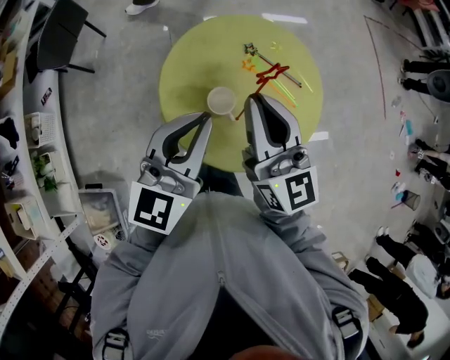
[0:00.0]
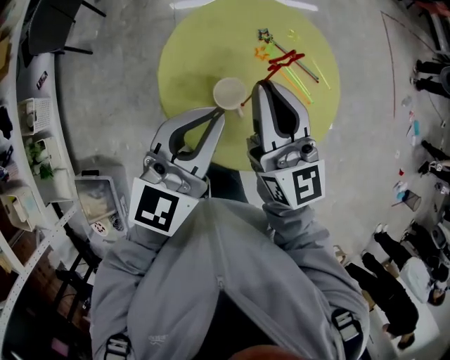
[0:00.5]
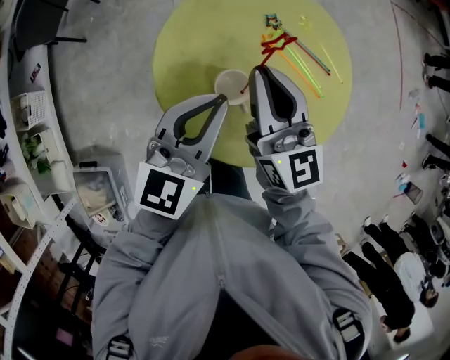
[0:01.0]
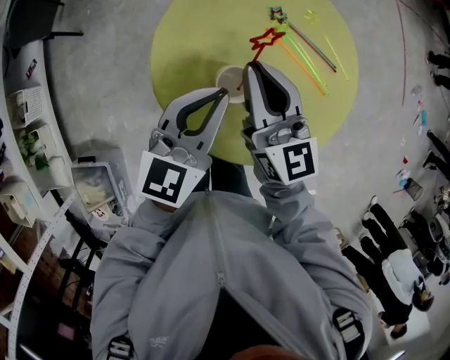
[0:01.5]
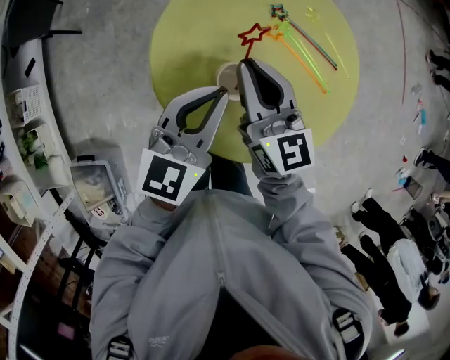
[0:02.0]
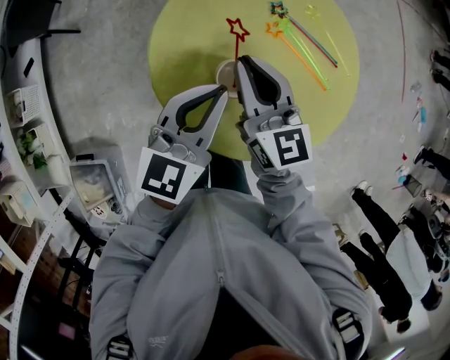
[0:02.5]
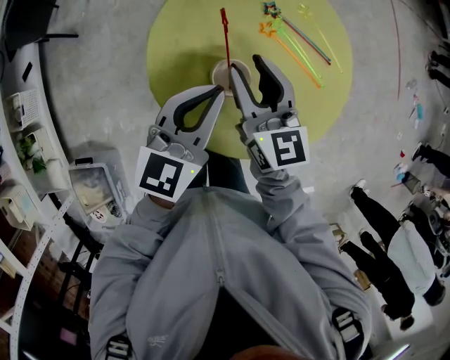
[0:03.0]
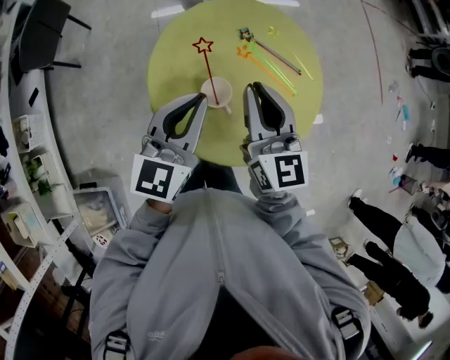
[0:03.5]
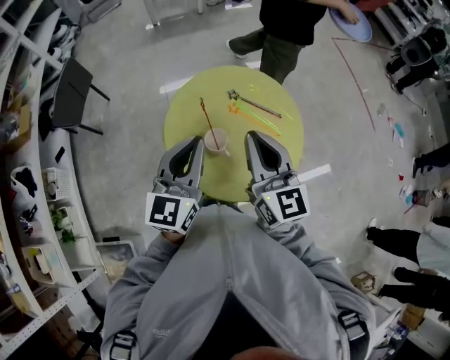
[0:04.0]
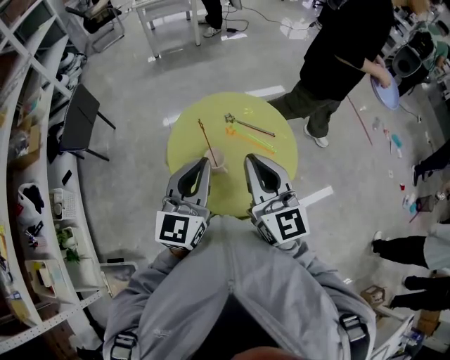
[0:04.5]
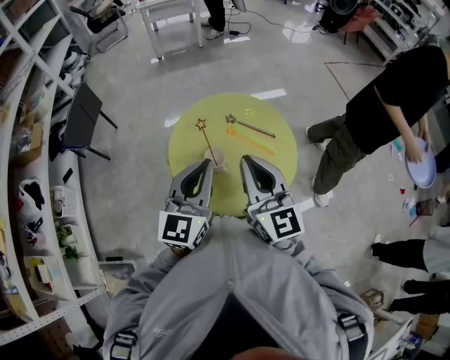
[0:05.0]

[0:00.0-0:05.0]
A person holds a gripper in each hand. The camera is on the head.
0:00.0 to 0:02.5: The two grippers go some 20 cm downward.
0:02.5 to 0:05.0: The grippers both shift upward and backward by about 35 cm. The right gripper rotates some 20 degrees, and opens, then closes again.

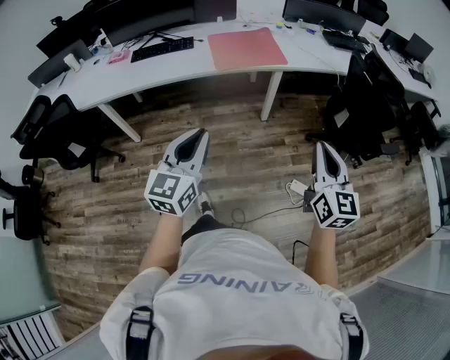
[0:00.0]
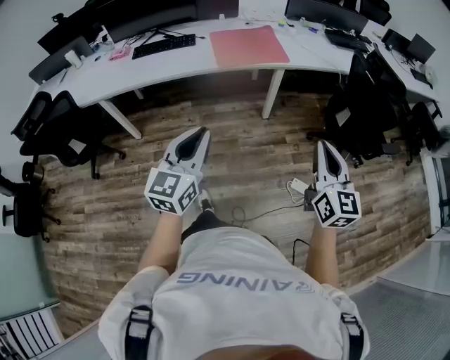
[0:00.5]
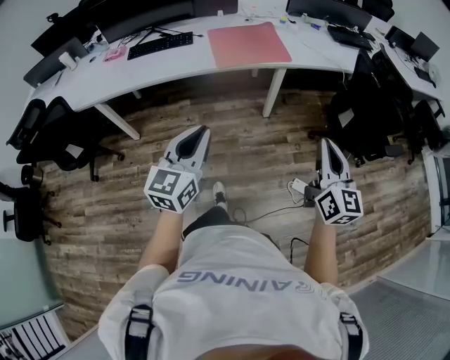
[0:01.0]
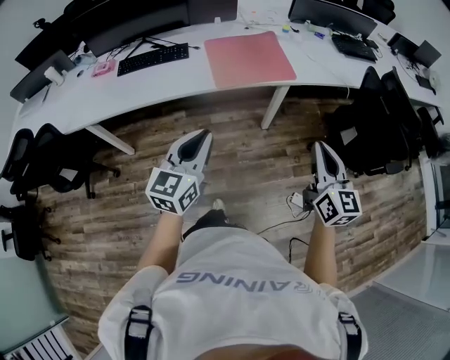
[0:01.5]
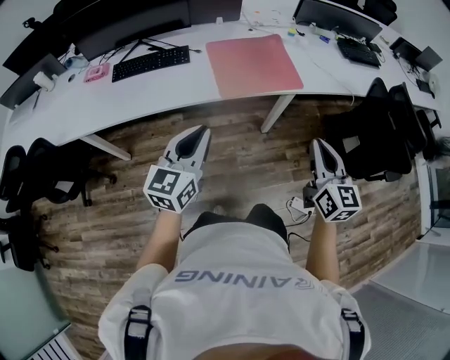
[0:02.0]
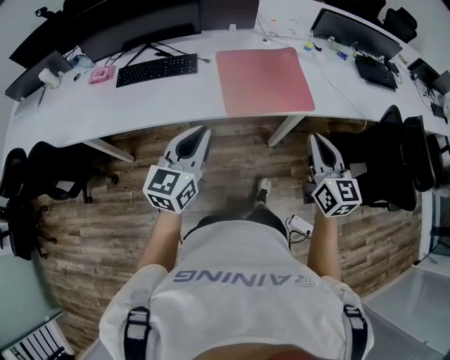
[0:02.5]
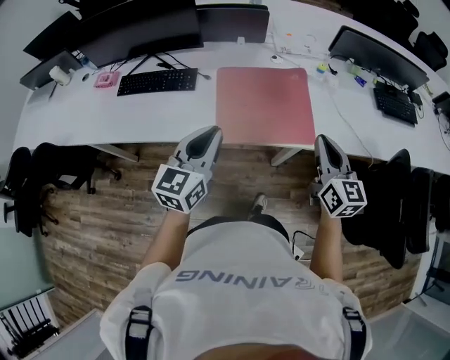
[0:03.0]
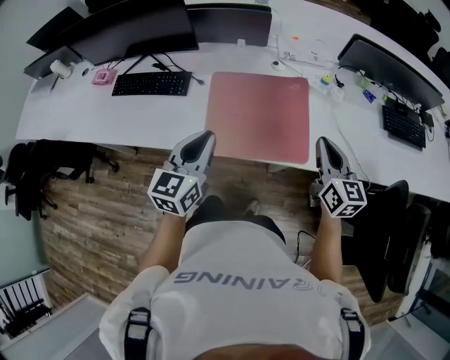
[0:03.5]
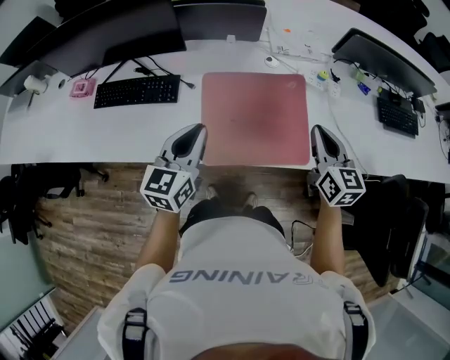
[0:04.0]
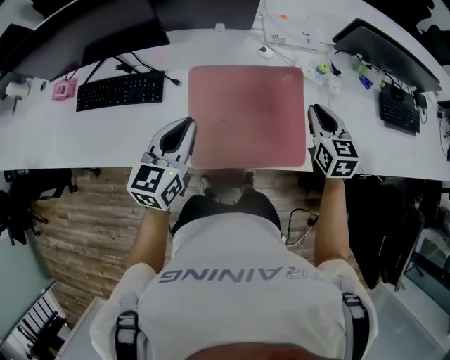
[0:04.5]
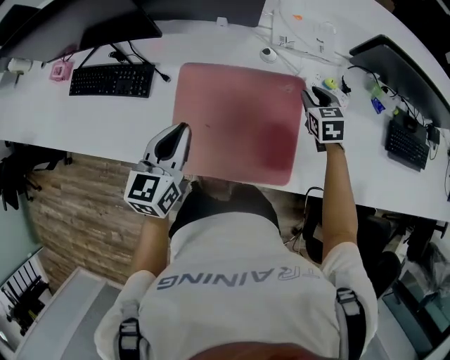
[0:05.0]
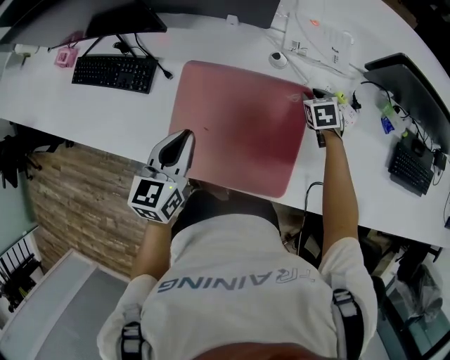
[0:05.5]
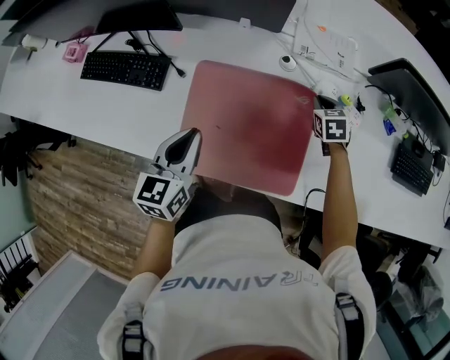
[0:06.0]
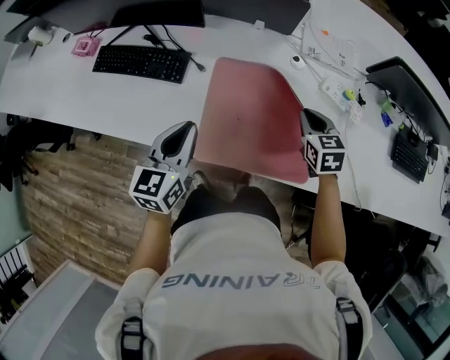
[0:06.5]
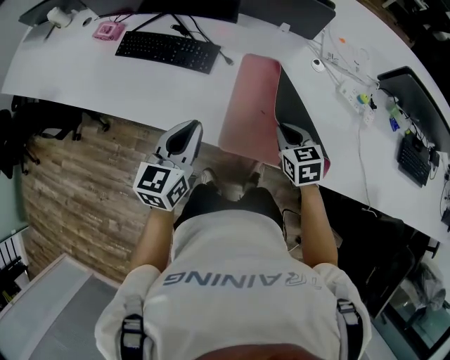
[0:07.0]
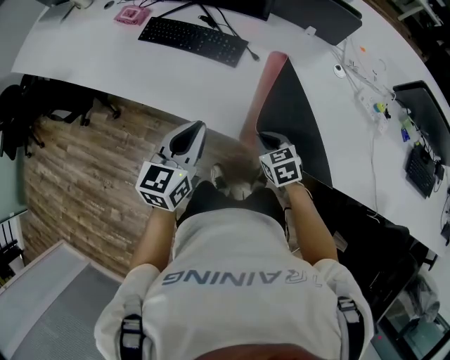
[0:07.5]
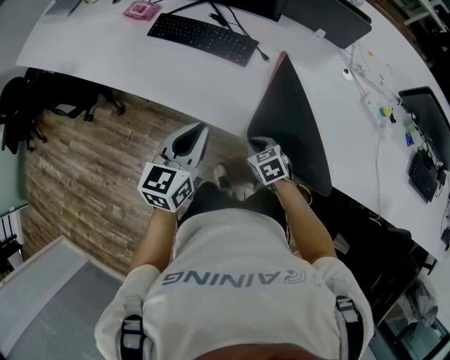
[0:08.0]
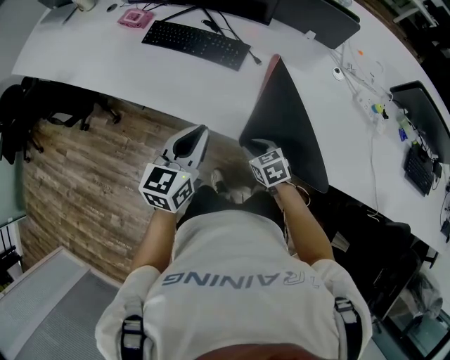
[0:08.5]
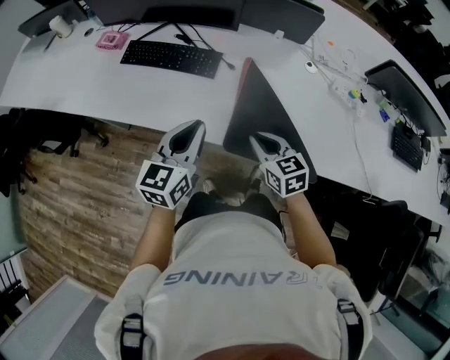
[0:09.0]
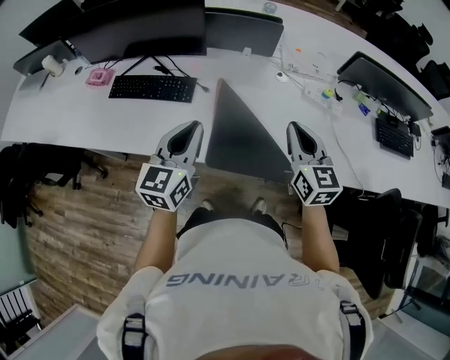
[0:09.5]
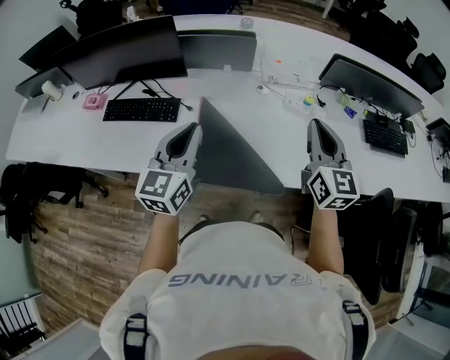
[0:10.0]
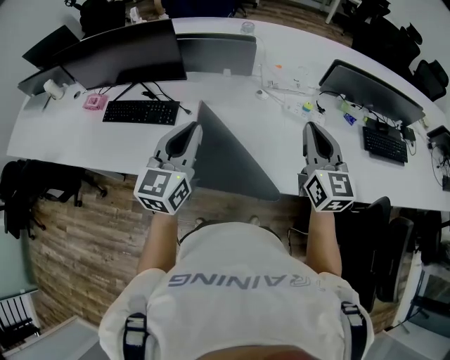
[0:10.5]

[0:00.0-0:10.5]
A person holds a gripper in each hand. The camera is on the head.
0:00.0 to 0:02.0: Both grippers travel together forward and to the left, about 30 cm.
0:02.0 to 0:04.0: The grippers both shift forward by approximately 40 cm.
0:04.0 to 0:06.5: The left gripper is displaced downward by approximately 5 cm, and reaches some 10 cm to the right, then returns; the right gripper heads forward and downward, covering about 20 cm, swivels approximately 30 degrees, and opens, then closes once more.
0:06.5 to 0:08.5: The left gripper travels to the left and backward by approximately 20 cm, while the right gripper travels to the left by some 35 cm, and changes its angle by some 30 degrees.
0:08.5 to 0:10.5: The right gripper shifts about 40 cm upward, angles its fingers upward, by roughly 50 degrees, and closes up; the left gripper changes place by some 25 cm, and rotates approximately 20 degrees.

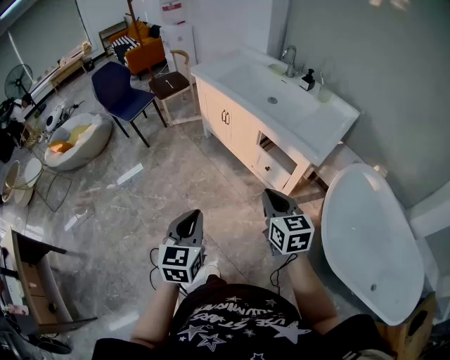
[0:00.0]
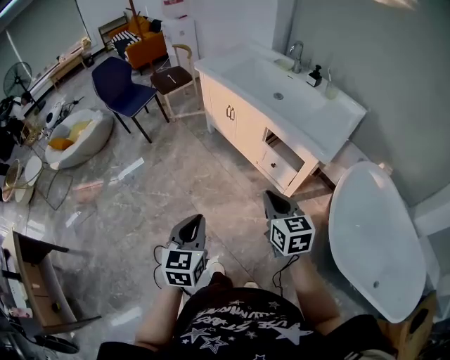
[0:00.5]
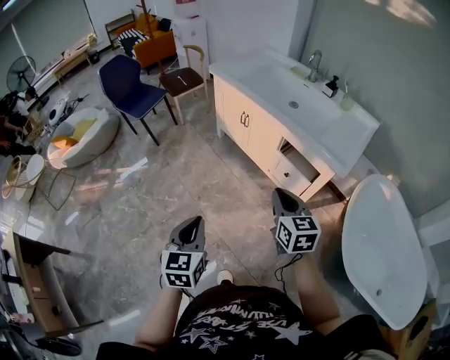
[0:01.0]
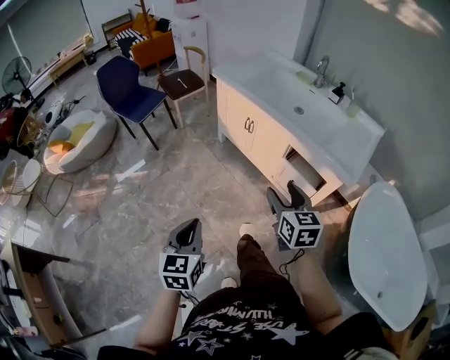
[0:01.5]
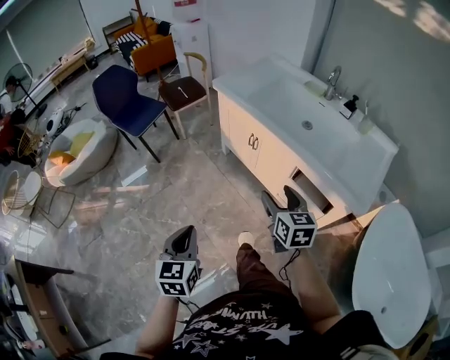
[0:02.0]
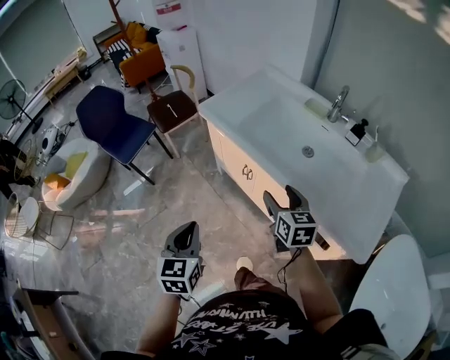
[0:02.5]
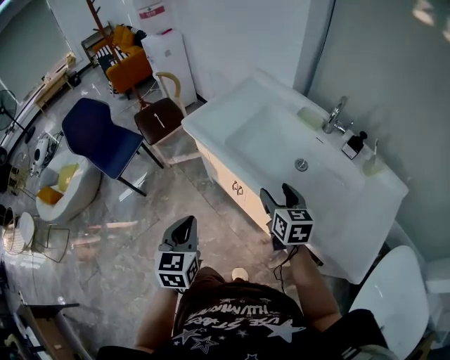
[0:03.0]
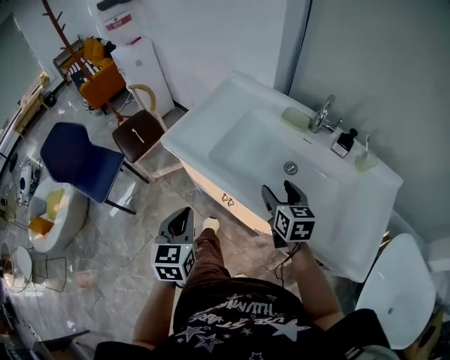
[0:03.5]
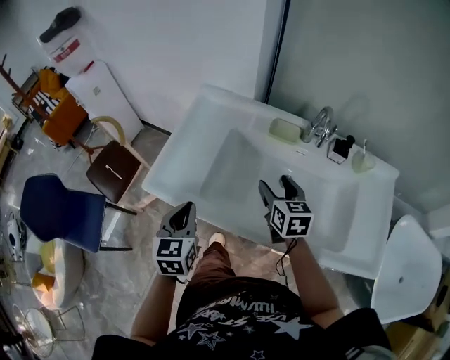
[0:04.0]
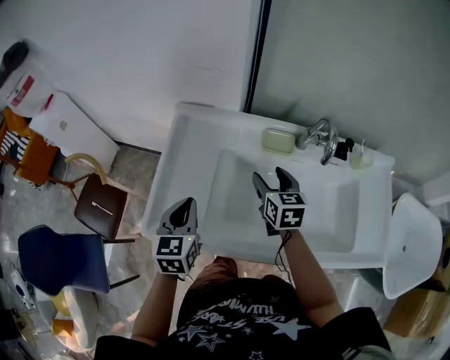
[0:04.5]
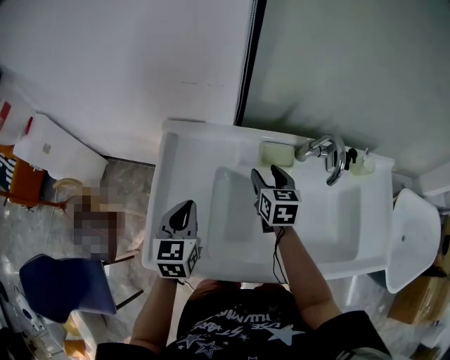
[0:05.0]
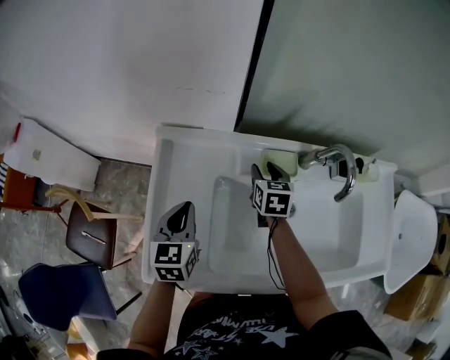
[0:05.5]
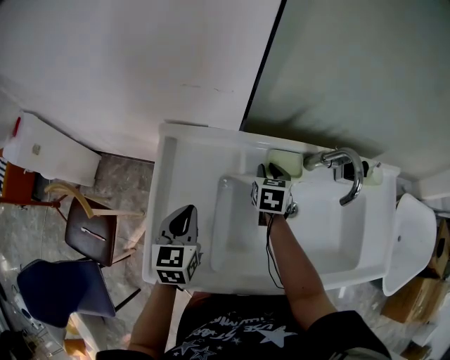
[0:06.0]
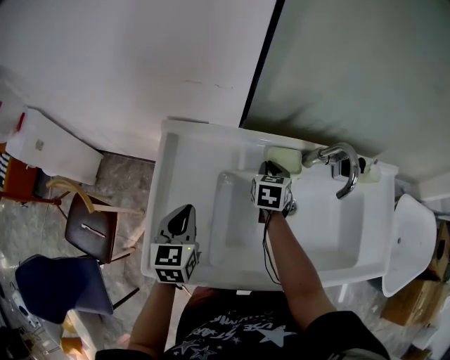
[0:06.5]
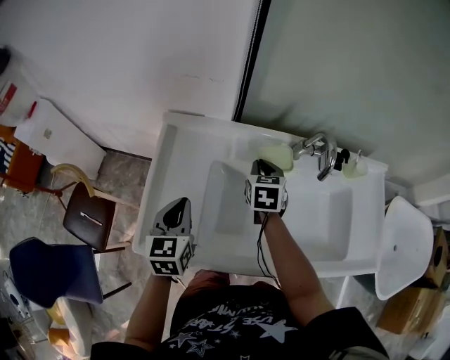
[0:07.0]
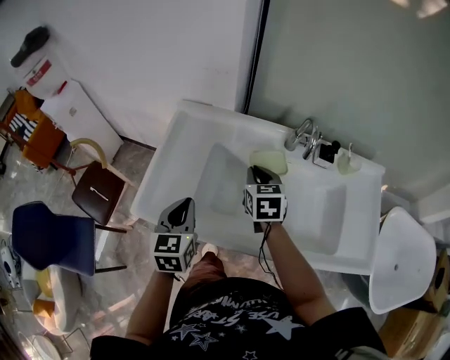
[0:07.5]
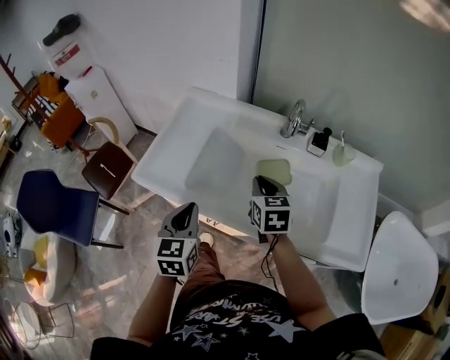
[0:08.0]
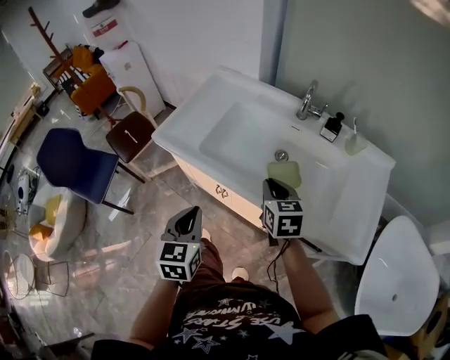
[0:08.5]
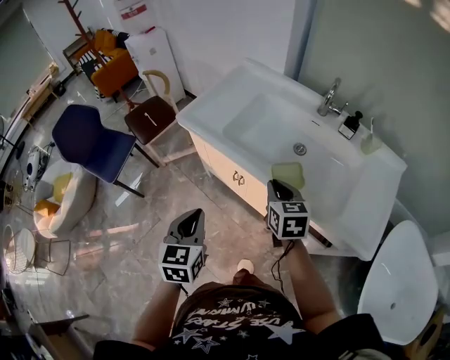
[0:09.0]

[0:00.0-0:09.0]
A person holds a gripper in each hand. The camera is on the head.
0:00.0 to 0:02.0: Both grippers move forward and to the left, about 30 cm. The right gripper opens its fingers.
0:02.0 to 0:04.5: The two grippers travel together, some 70 cm. The left gripper changes its angle by about 40 degrees; the right gripper swivels about 40 degrees.
0:04.5 to 0:07.0: The right gripper moves forward, roughly 10 cm, and closes up. The left gripper shifts about 5 cm forward.
0:07.0 to 0:09.0: The pair of grippers is taken about 50 cm. The right gripper turns by roughly 40 degrees. Meanwhile the left gripper rotates roughly 30 degrees.

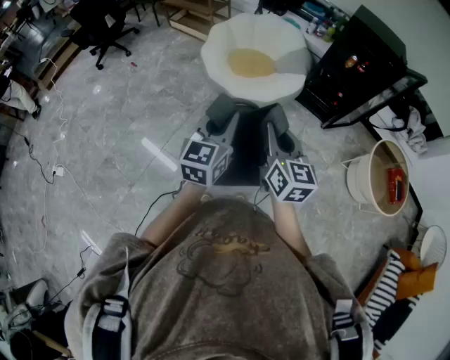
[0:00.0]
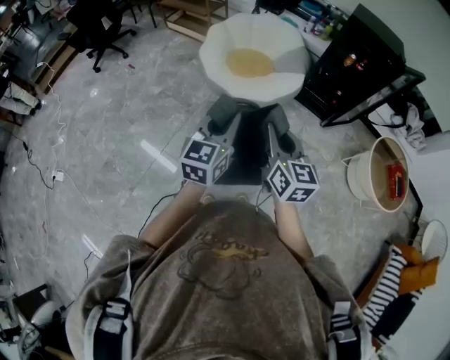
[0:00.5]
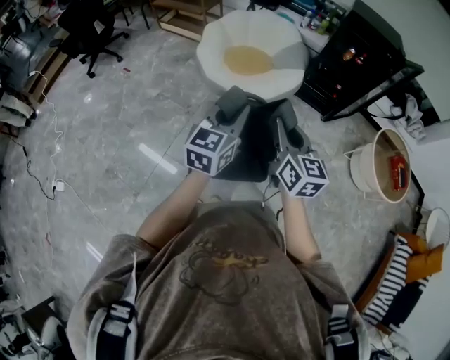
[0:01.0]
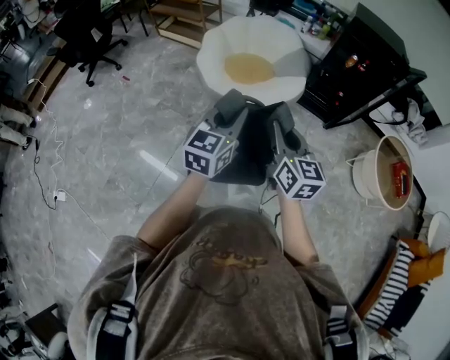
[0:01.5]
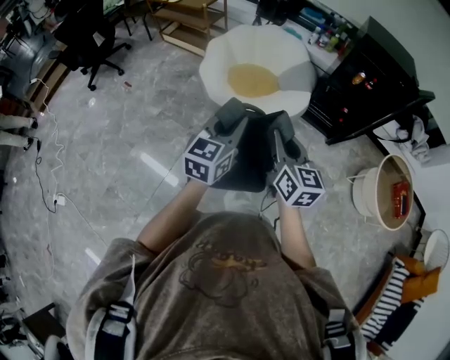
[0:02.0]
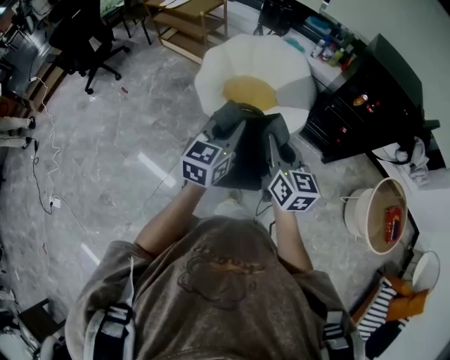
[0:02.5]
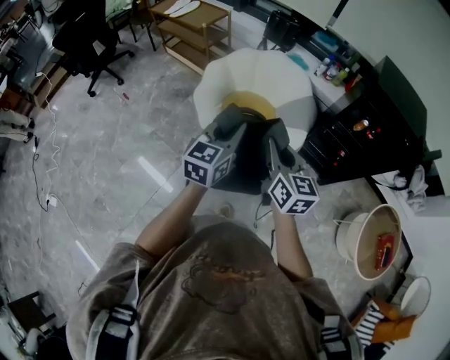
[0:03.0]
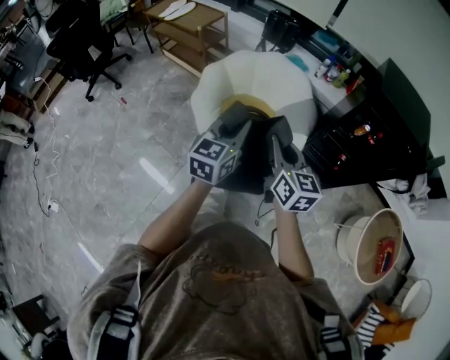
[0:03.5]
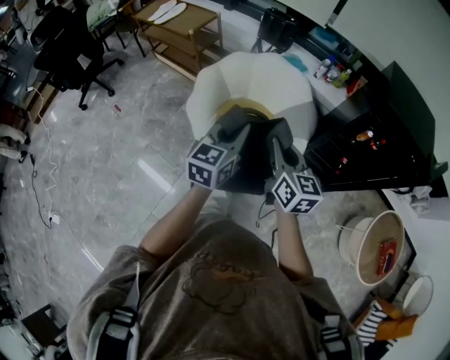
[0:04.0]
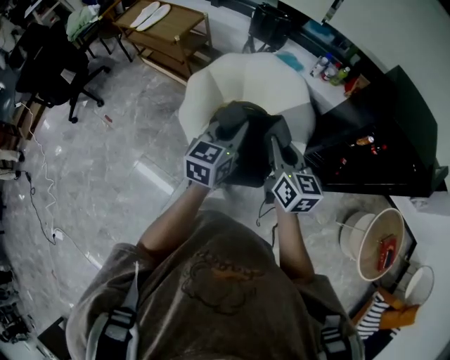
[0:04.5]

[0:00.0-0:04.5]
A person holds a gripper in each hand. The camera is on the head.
0:00.0 to 0:02.0: Both grippers move forward, about 15 cm.
0:02.0 to 0:04.5: Both grippers are carried forward, roughly 50 cm.
